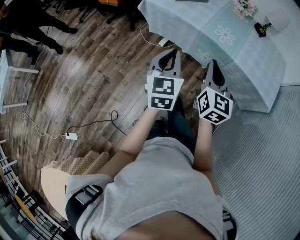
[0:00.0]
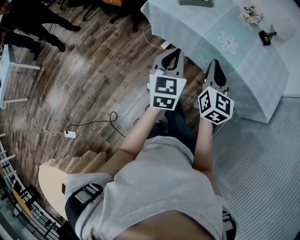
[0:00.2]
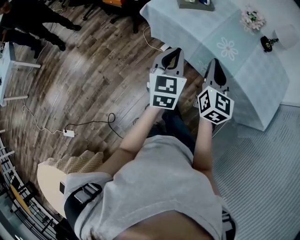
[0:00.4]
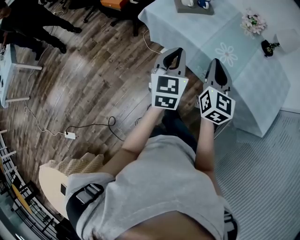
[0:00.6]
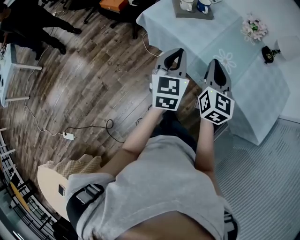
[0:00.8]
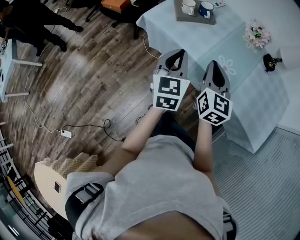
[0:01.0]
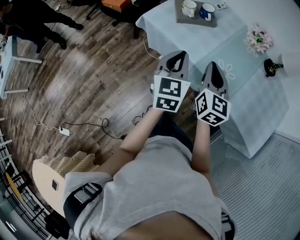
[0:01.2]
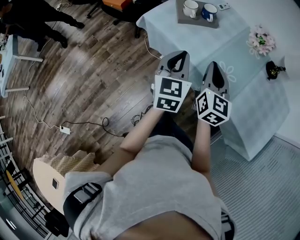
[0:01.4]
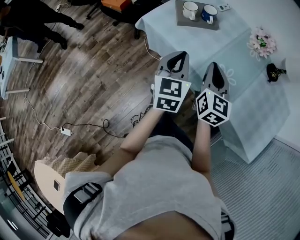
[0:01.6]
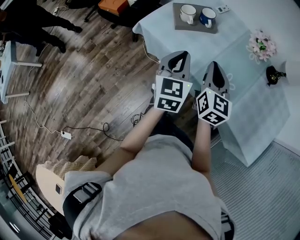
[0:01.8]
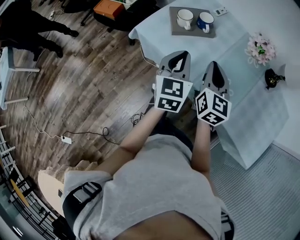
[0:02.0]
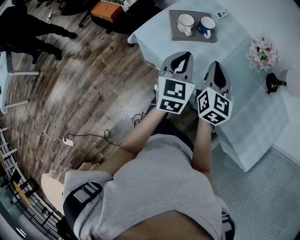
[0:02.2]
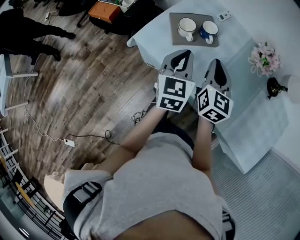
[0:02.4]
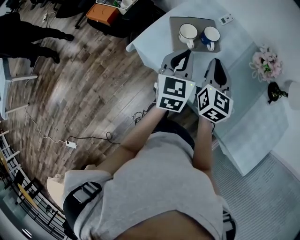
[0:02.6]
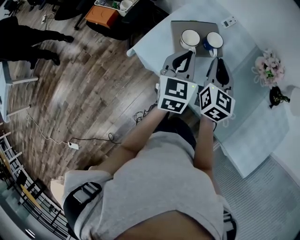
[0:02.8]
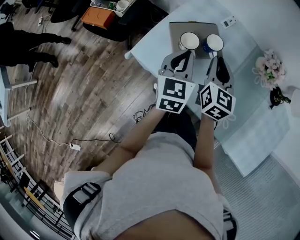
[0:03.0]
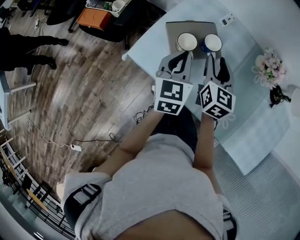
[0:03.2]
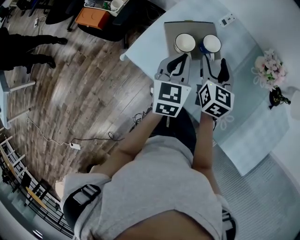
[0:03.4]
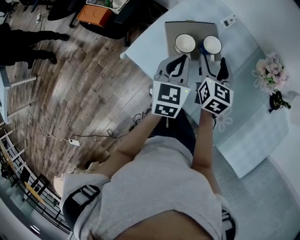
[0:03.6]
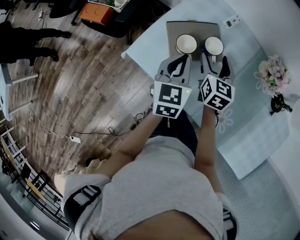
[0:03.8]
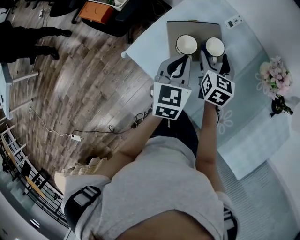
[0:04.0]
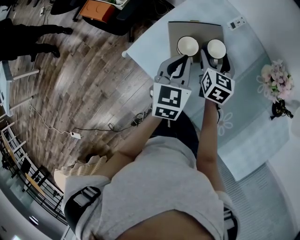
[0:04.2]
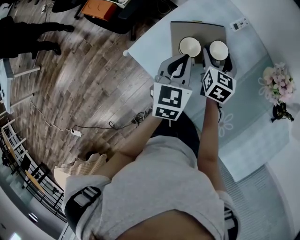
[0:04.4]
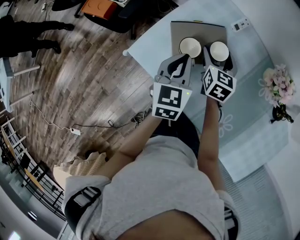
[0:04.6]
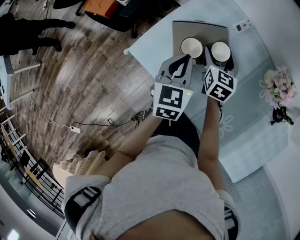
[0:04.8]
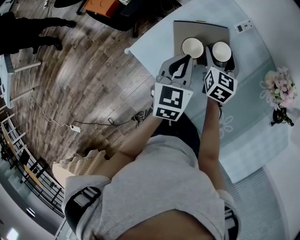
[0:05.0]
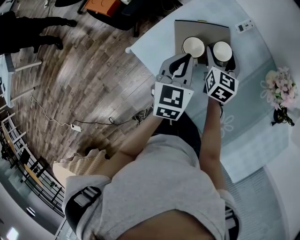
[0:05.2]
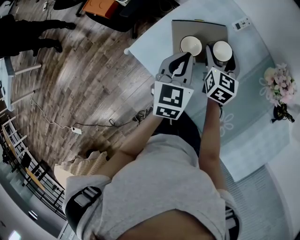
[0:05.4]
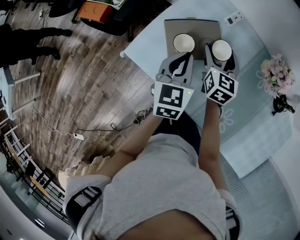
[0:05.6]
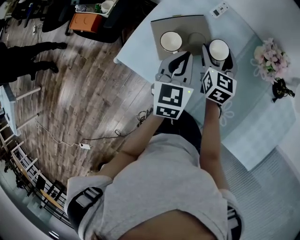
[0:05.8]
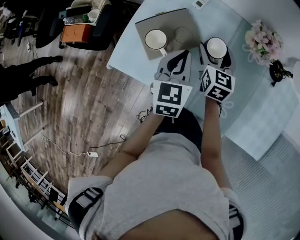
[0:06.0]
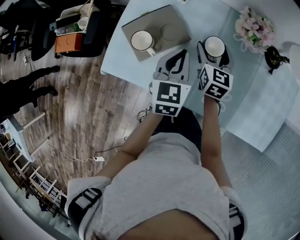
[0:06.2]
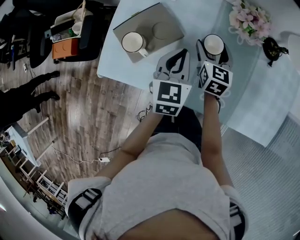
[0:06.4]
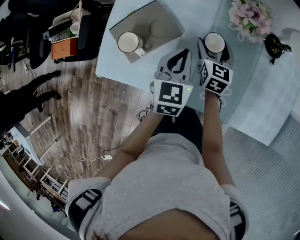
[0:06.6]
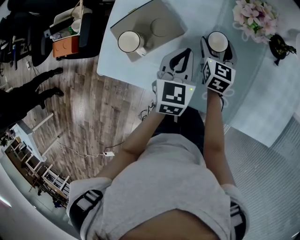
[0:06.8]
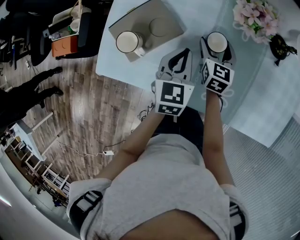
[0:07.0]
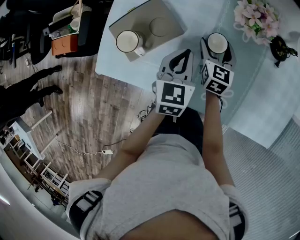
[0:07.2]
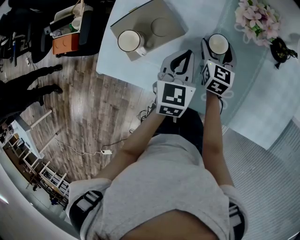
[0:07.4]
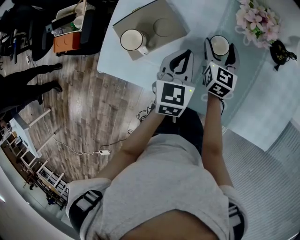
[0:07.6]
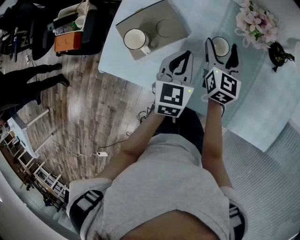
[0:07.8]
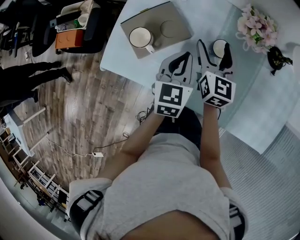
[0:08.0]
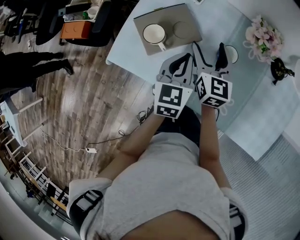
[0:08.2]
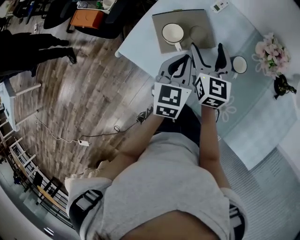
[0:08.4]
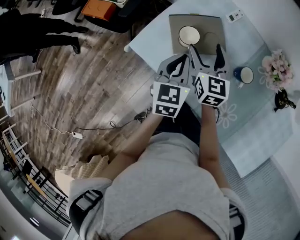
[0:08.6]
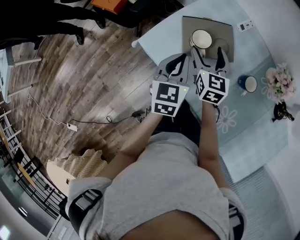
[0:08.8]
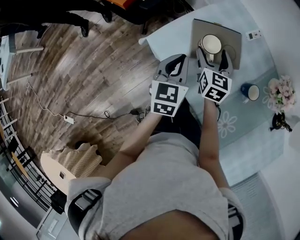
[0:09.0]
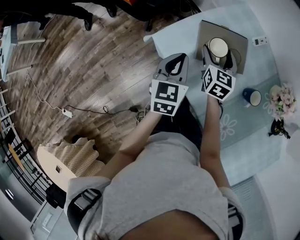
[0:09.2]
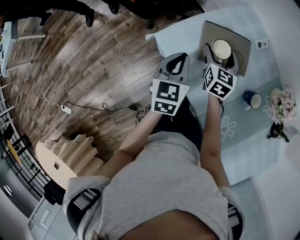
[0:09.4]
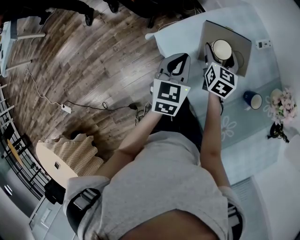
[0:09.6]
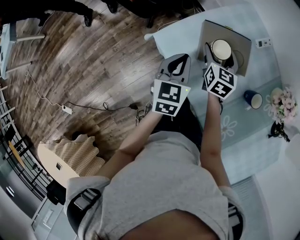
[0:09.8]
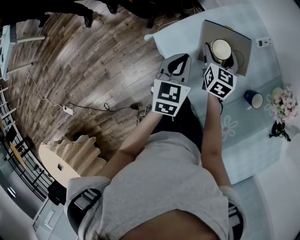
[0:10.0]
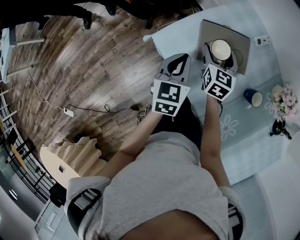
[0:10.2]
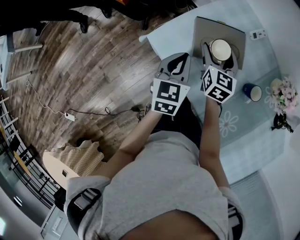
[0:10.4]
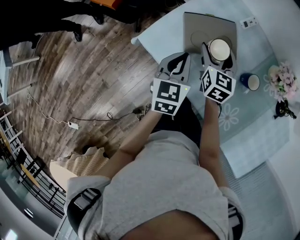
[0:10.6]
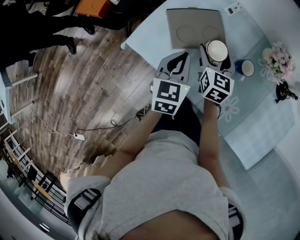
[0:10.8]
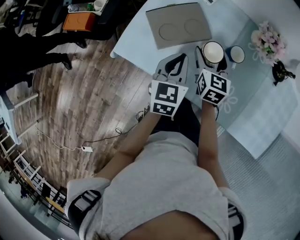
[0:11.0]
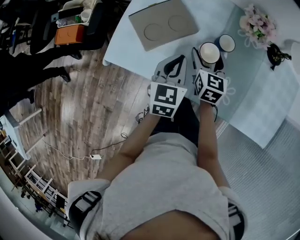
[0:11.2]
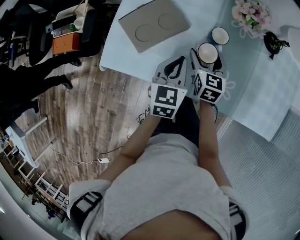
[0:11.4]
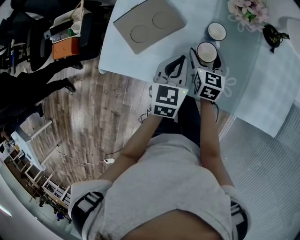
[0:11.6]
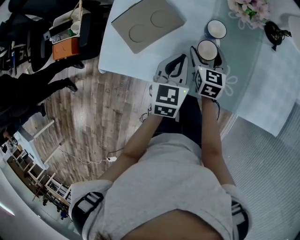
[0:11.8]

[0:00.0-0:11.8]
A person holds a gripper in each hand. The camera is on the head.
0:00.0 to 0:01.4: Both grippers move forward, approximately 30 cm.
0:01.4 to 0:03.0: Both grippers move forward, some 30 cm.
0:03.0 to 0:04.4: The right gripper travels downward and forward by approximately 15 cm, and opens its fingers. Meanwhile the left gripper ends up roughly 5 cm from where it was.
0:04.4 to 0:06.0: Both grippers move to the right, about 10 cm.
0:06.0 to 0:07.4: Both grippers travel together to the right and downward, some 10 cm.
0:07.4 to 0:08.8: The left gripper ends up roughly 20 cm from where it was, and swivels roughly 30 degrees. The right gripper shifts by approximately 30 cm, and rotates roughly 40 degrees.
0:10.4 to 0:11.8: The left gripper ends up about 20 cm from where it was, and rotates roughly 40 degrees. Meanwhile the right gripper changes place by roughly 25 cm, and changes its angle by some 30 degrees.

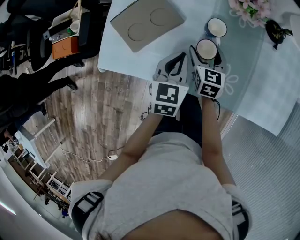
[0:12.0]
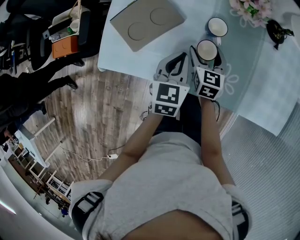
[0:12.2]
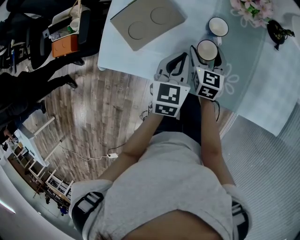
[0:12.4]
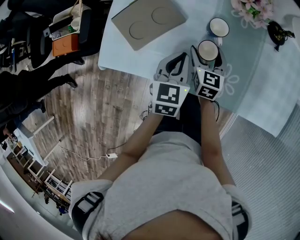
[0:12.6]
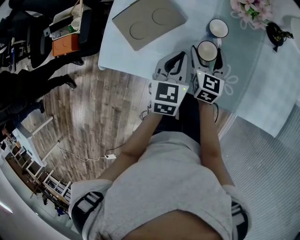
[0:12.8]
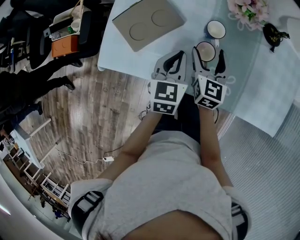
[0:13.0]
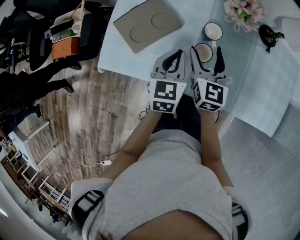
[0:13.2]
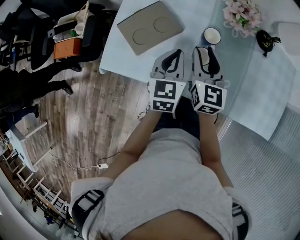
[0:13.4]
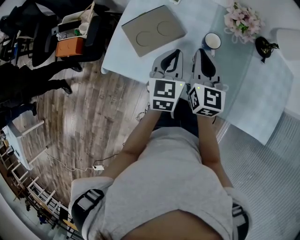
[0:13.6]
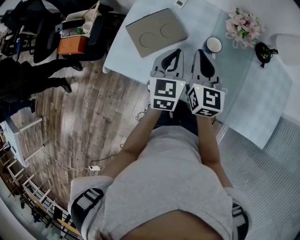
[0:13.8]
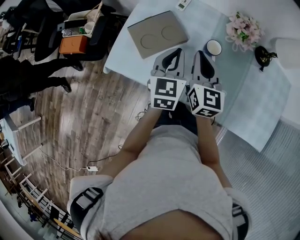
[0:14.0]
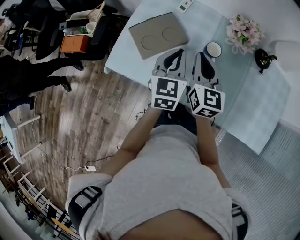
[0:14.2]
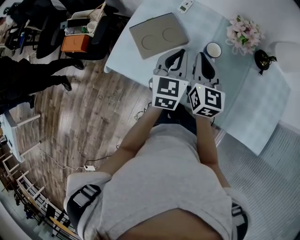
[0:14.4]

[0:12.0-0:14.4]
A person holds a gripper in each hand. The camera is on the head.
0:12.0 to 0:13.2: The right gripper shifts about 10 cm upward.
0:13.2 to 0:14.4: The two grippers go about 5 cm upward. The right gripper closes up.

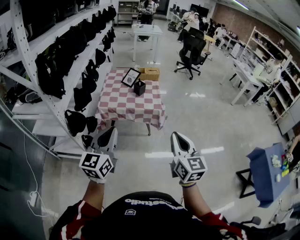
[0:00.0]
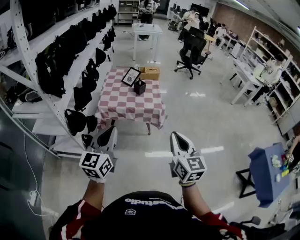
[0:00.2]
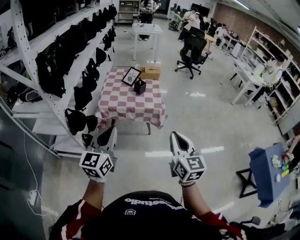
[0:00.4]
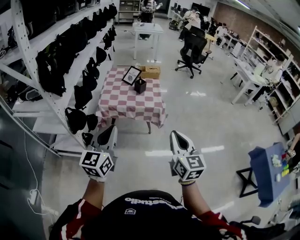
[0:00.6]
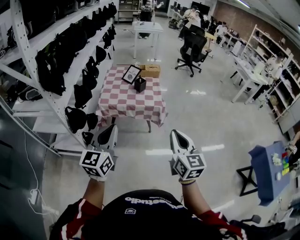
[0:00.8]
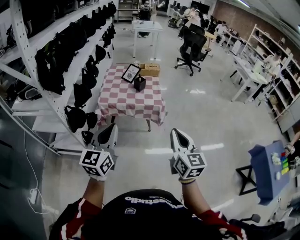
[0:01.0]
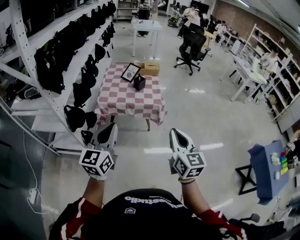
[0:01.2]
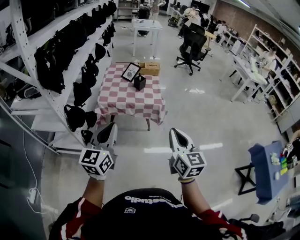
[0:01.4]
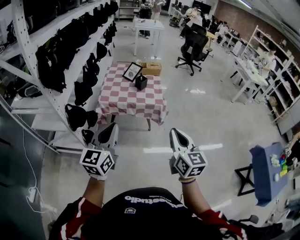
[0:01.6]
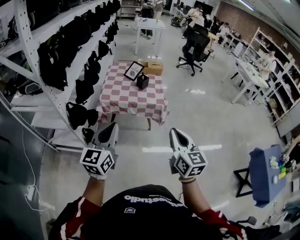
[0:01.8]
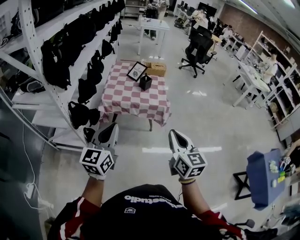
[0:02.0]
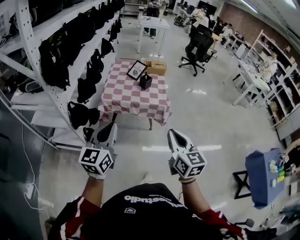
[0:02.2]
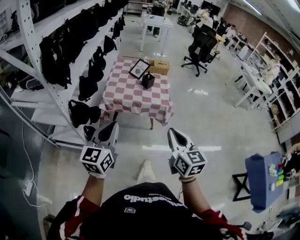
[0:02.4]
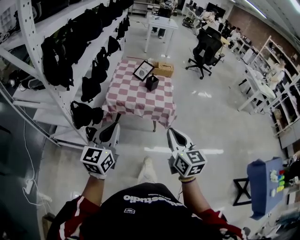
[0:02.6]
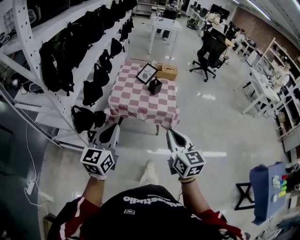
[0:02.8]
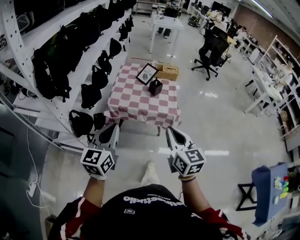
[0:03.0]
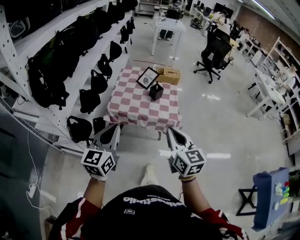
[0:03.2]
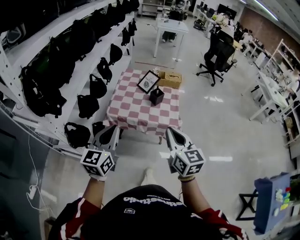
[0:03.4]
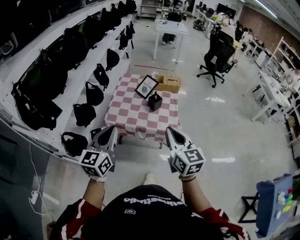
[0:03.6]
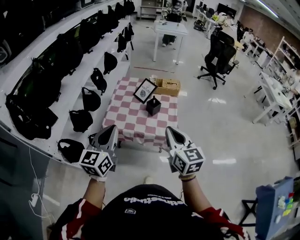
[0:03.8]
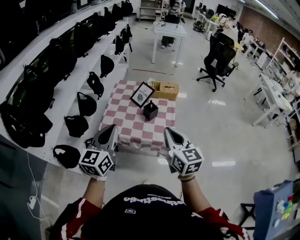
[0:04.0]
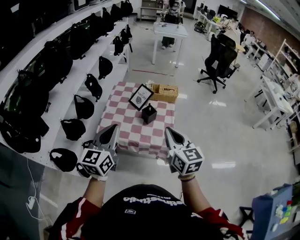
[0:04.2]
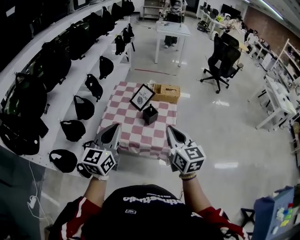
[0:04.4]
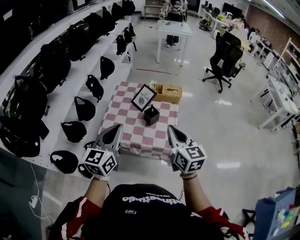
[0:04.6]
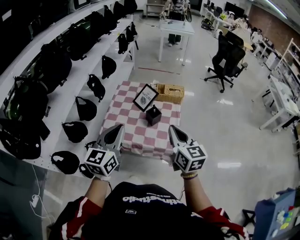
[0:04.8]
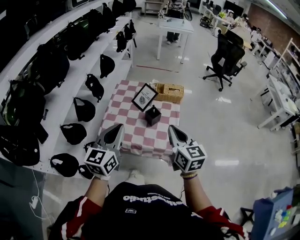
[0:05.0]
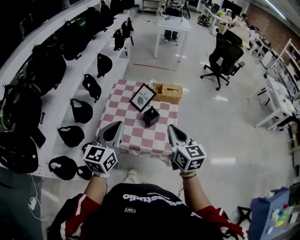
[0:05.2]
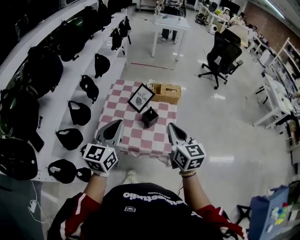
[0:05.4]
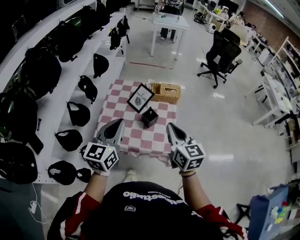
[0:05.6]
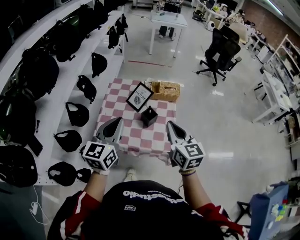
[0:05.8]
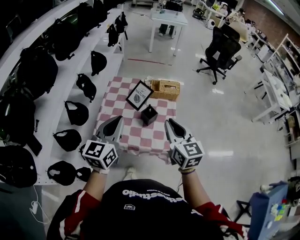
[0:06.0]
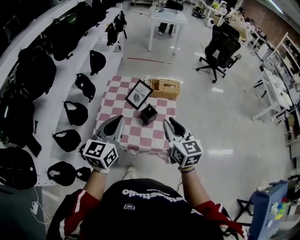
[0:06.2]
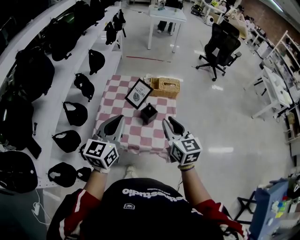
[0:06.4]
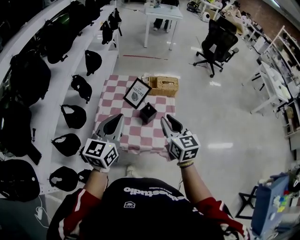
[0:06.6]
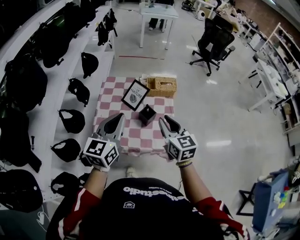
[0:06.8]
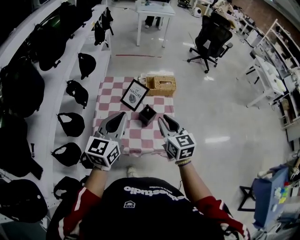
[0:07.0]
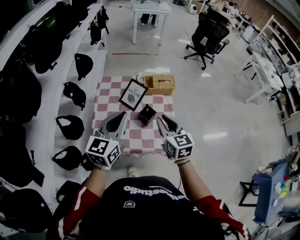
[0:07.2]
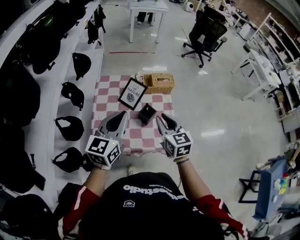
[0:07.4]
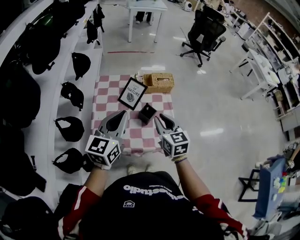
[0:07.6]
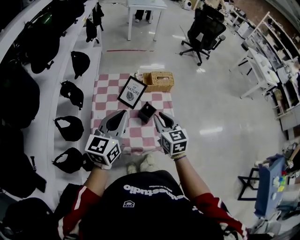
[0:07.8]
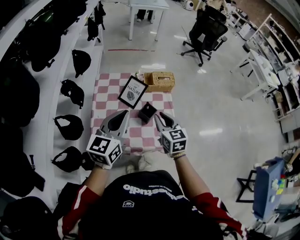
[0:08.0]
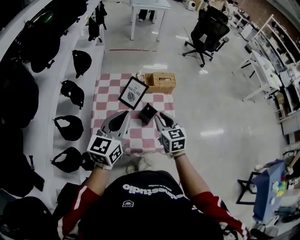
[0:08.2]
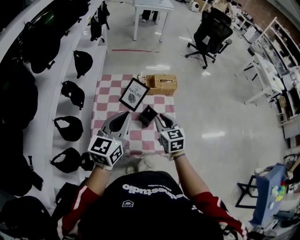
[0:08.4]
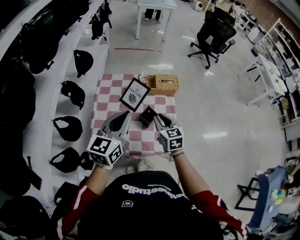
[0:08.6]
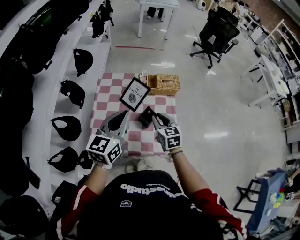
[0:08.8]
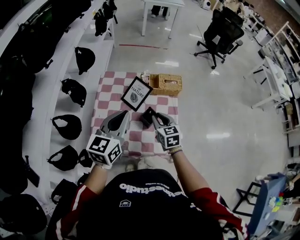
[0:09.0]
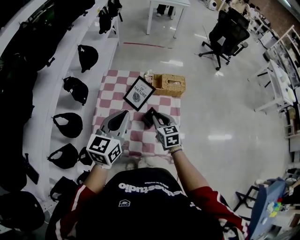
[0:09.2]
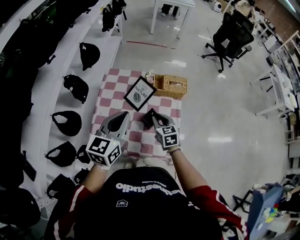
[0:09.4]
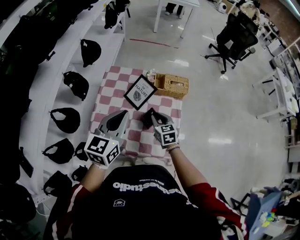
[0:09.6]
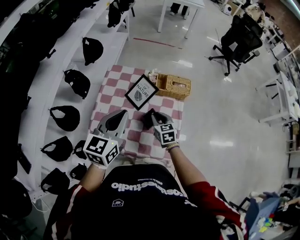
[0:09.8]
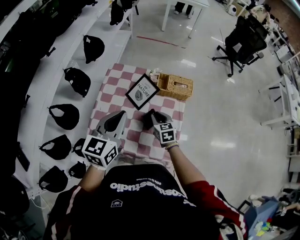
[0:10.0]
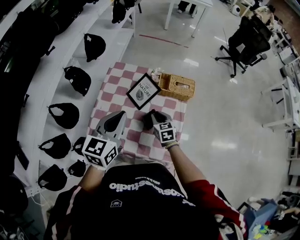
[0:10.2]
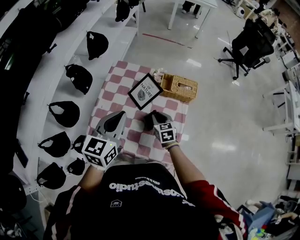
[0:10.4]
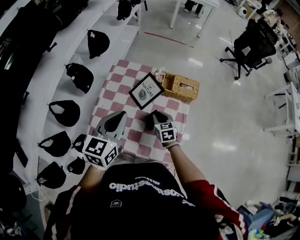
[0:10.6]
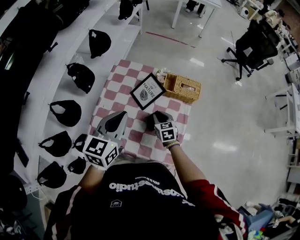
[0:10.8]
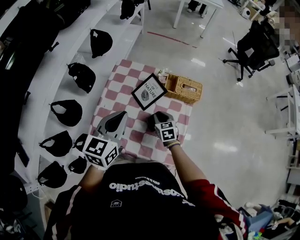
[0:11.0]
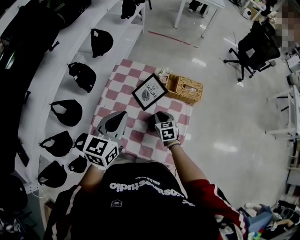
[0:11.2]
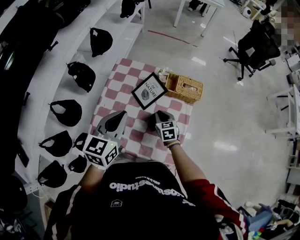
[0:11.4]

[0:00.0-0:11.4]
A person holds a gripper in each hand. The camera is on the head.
0:00.0 to 0:01.4: The grippers move only a little.
0:01.4 to 0:02.8: Both grippers move forward and to the left, roughly 10 cm.
0:02.8 to 0:04.2: The left gripper moves forward and to the right, some 30 cm; the right gripper moves forward, some 30 cm.
0:04.2 to 0:05.6: Both grippers move forward, about 10 cm.
0:05.6 to 0:07.2: The right gripper is displaced downward and forward by about 10 cm, and opens. The left gripper shifts roughly 10 cm forward.
0:07.2 to 0:08.6: The right gripper moves downward and forward, some 10 cm.
0:08.6 to 0:10.0: The left gripper ends up about 5 cm from where it was. Meanwhile the right gripper is displaced downward and forward by roughly 15 cm.
0:10.0 to 0:11.4: The right gripper shifts by some 5 cm.
